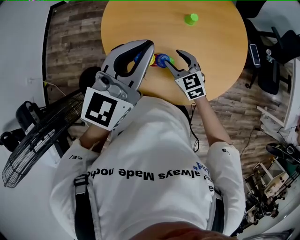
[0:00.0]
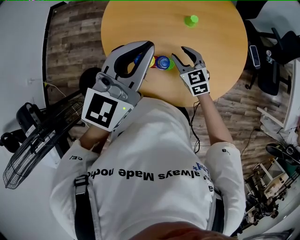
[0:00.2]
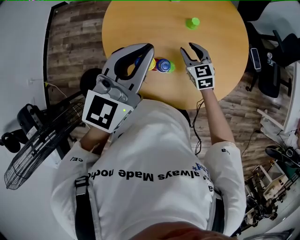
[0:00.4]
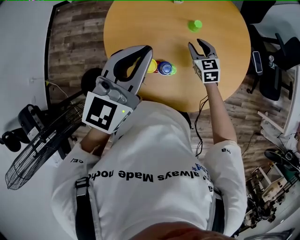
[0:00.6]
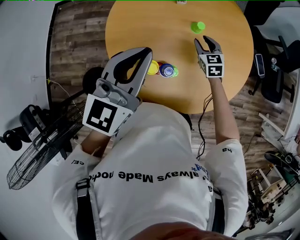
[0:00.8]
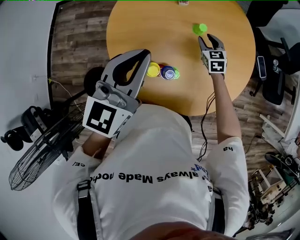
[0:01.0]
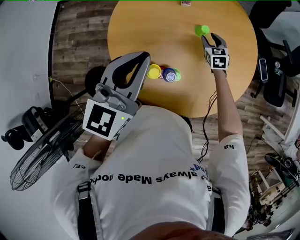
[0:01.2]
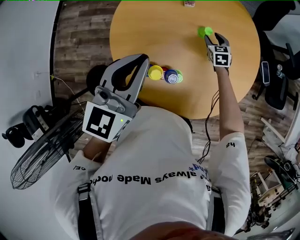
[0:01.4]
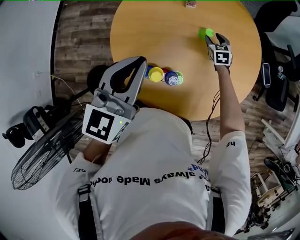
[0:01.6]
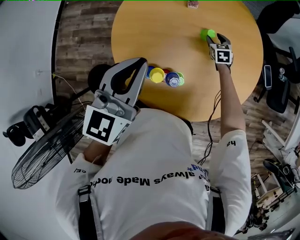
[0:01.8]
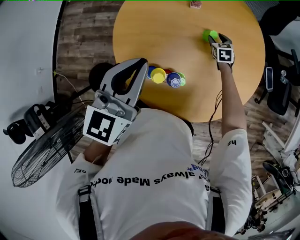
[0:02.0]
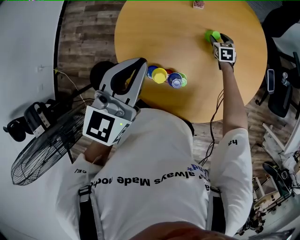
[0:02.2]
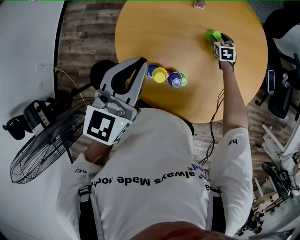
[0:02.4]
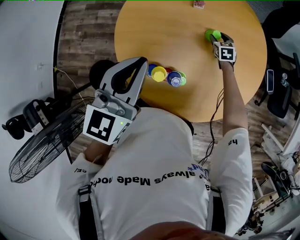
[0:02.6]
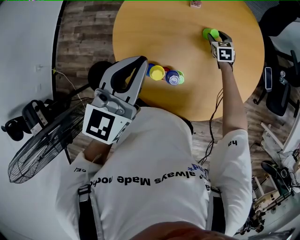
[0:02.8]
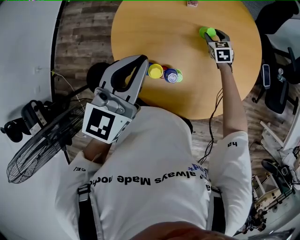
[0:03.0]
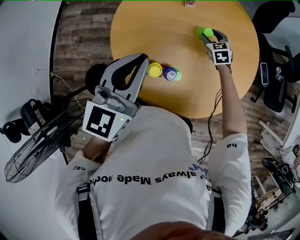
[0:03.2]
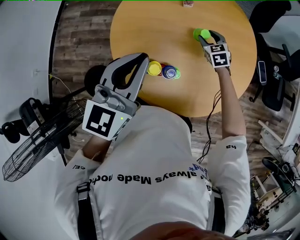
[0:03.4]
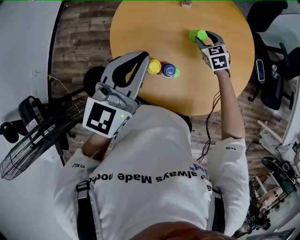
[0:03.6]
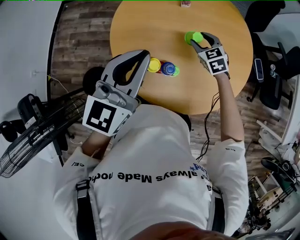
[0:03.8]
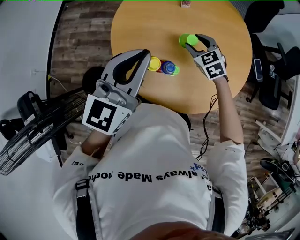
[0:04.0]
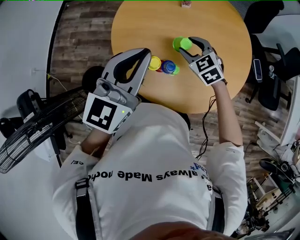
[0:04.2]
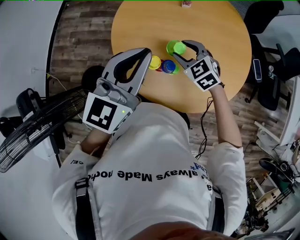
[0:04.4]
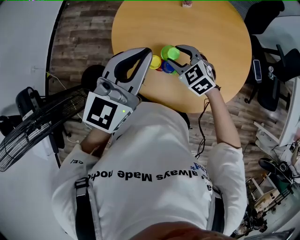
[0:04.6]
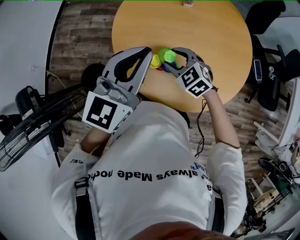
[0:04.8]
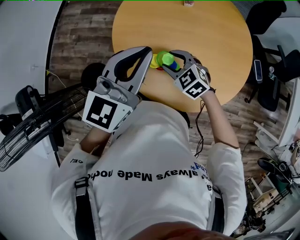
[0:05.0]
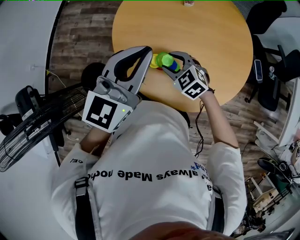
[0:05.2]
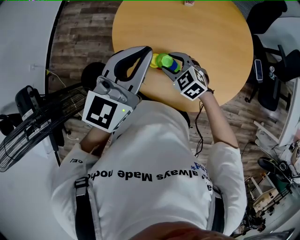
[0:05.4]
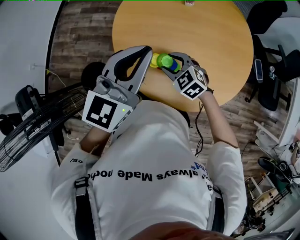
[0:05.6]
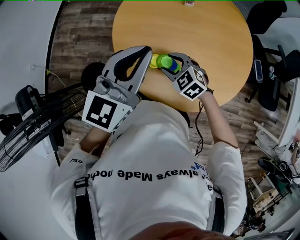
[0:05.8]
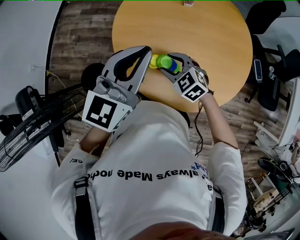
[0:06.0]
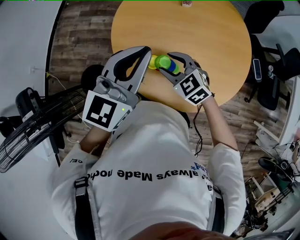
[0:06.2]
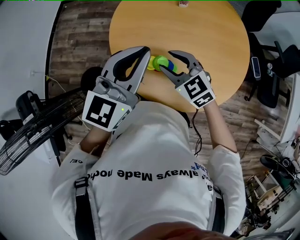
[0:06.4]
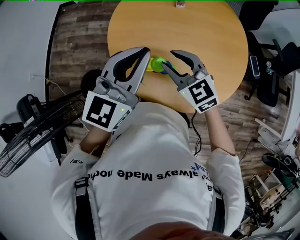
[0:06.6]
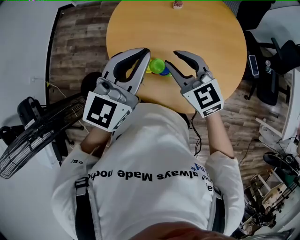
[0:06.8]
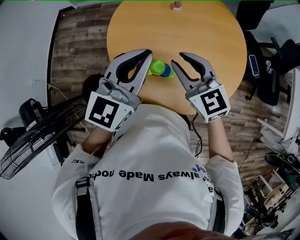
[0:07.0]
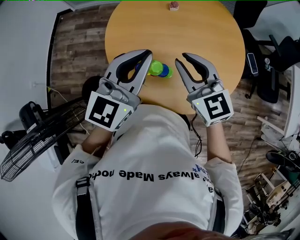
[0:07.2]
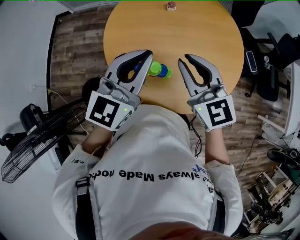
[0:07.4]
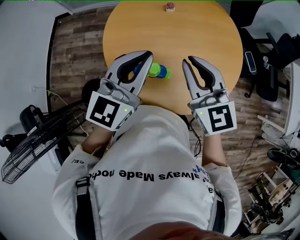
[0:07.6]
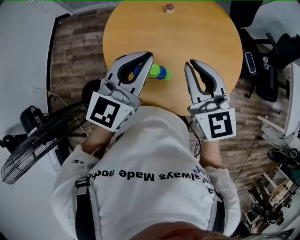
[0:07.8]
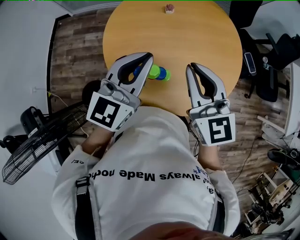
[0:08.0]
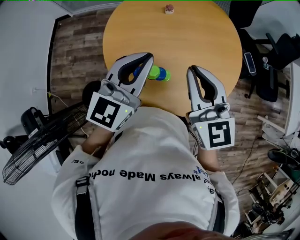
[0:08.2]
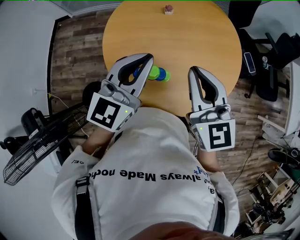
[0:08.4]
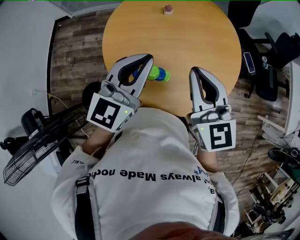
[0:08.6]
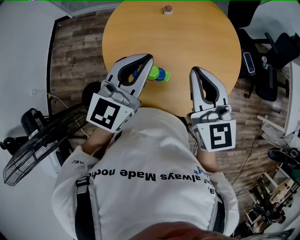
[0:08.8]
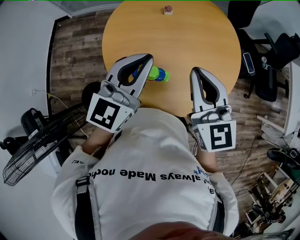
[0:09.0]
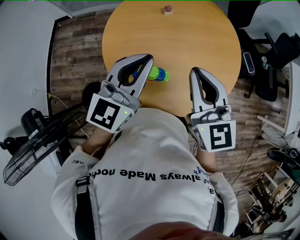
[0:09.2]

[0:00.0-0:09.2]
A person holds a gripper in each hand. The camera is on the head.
0:00.0 to 0:01.6: The left gripper goes approximately 5 cm forward. The right gripper is displaced forward, to the right and downward by some 30 cm, and rotates approximately 20 degrees.
0:01.6 to 0:03.0: There are only small adjustments of the grippers.
0:03.0 to 0:04.6: The right gripper travels backward, to the left and upward by approximately 30 cm, and rotates roughly 30 degrees, while the left gripper heads backward, covering roughly 5 cm.
0:04.6 to 0:06.2: The grippers move only a little.
0:06.2 to 0:07.6: The left gripper moves to the right, approximately 5 cm. Meanwhile the right gripper goes roughly 20 cm upward and to the right, turns by about 40 degrees, and closes its fingers.
0:07.6 to 0:09.2: The grippers make only small movements.

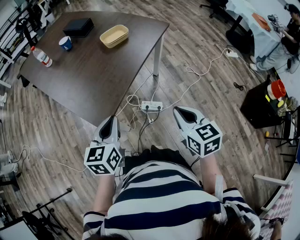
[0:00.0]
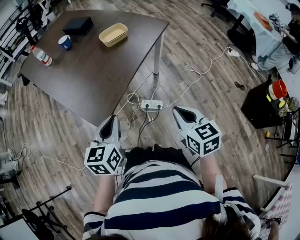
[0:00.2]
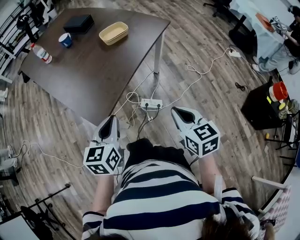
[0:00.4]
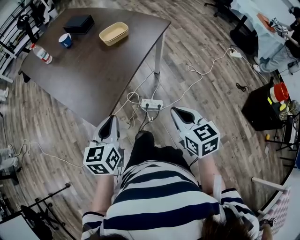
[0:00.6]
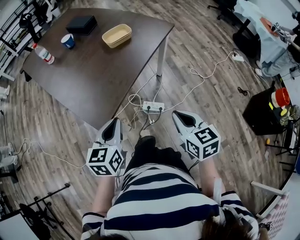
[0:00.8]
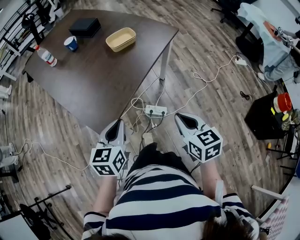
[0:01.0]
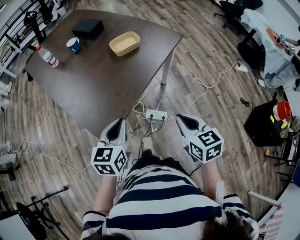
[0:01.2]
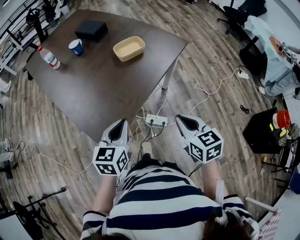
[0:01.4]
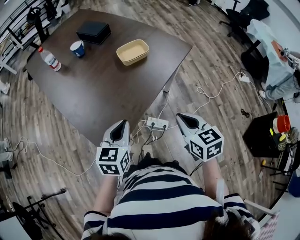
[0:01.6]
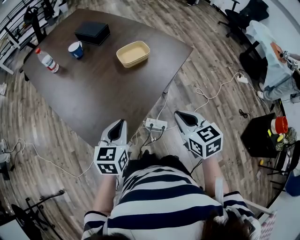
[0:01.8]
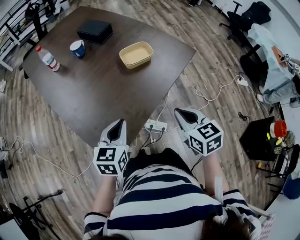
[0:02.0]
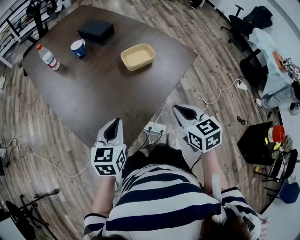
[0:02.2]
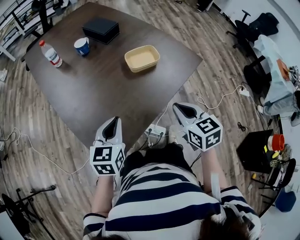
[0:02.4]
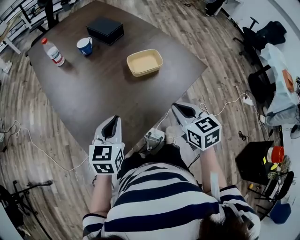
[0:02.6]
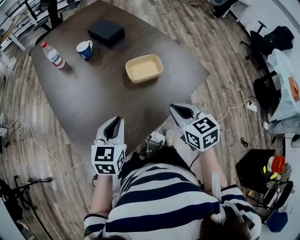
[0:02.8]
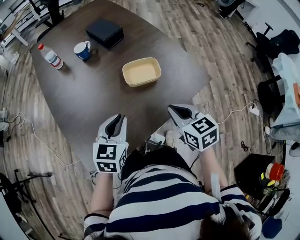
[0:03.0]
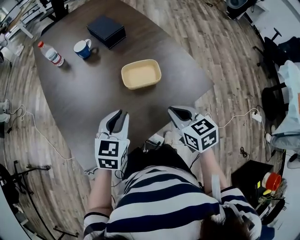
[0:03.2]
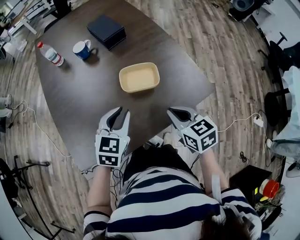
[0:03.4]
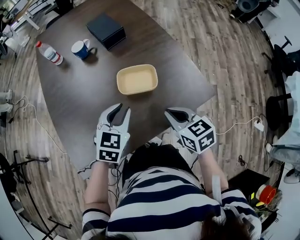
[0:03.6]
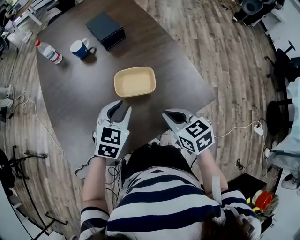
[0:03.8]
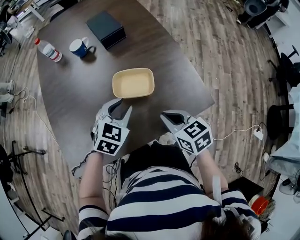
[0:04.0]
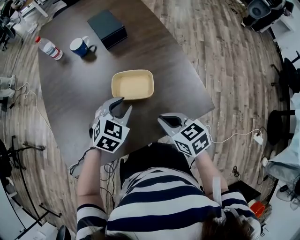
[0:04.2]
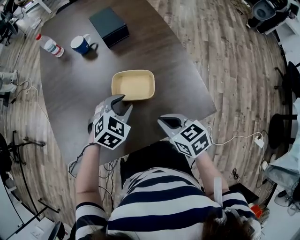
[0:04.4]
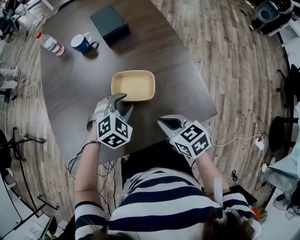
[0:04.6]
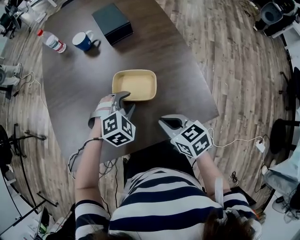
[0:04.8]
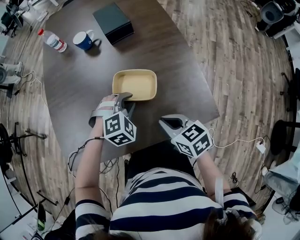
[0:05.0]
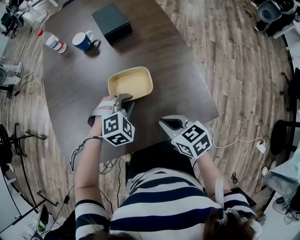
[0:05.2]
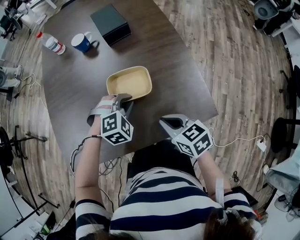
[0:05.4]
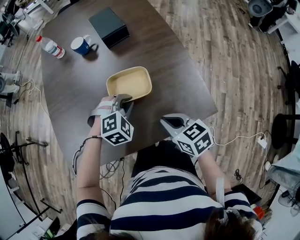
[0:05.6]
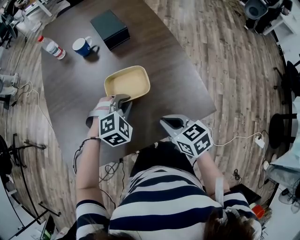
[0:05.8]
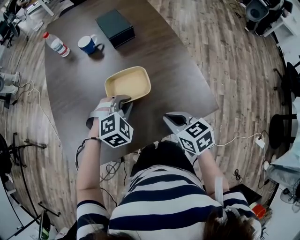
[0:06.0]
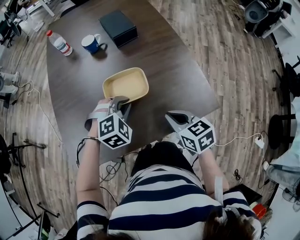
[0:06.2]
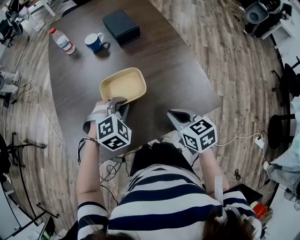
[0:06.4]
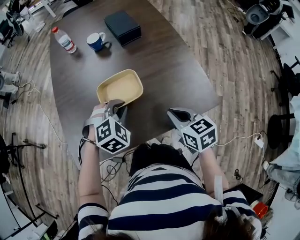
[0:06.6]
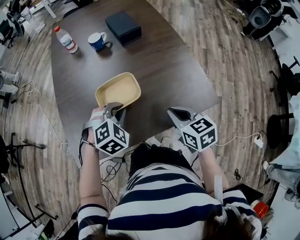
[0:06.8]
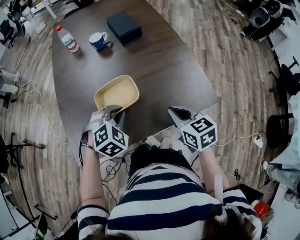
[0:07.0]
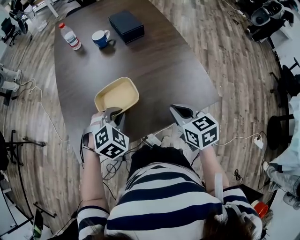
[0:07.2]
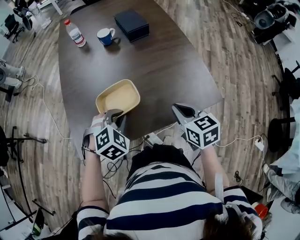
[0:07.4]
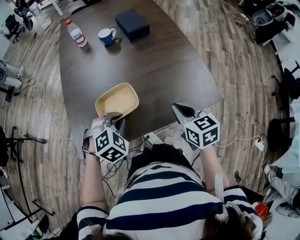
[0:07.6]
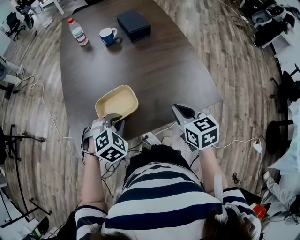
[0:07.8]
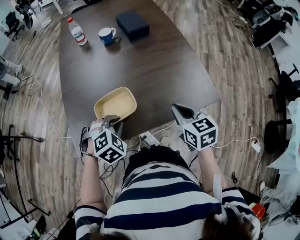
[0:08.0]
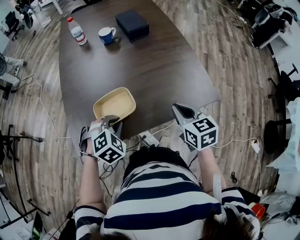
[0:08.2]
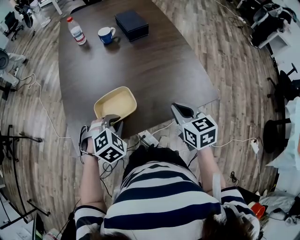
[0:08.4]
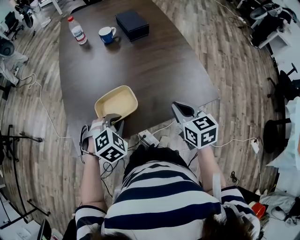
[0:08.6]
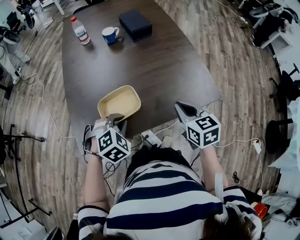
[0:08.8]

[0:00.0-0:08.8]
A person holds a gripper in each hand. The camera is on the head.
0:00.0 to 0:01.4: The two grippers go roughly 15 cm forward.
0:01.4 to 0:03.0: Both grippers move forward, roughly 30 cm. The right gripper swivels about 20 degrees.
0:03.0 to 0:04.4: The grippers both shift to the right, forward and downward by some 20 cm. The right gripper turns by some 30 degrees; the left gripper rotates some 30 degrees.
0:04.4 to 0:05.8: The left gripper turns by approximately 20 degrees.
0:05.8 to 0:07.4: The left gripper shifts roughly 20 cm to the left and backward; the right gripper shifts approximately 10 cm upward, to the left and backward.
0:07.4 to 0:08.8: The grippers make only small movements.

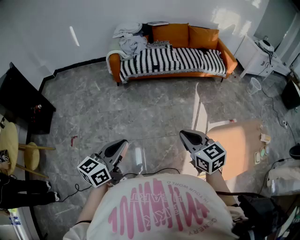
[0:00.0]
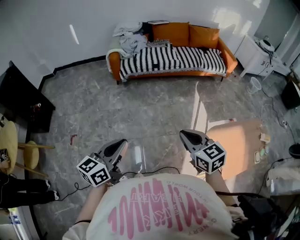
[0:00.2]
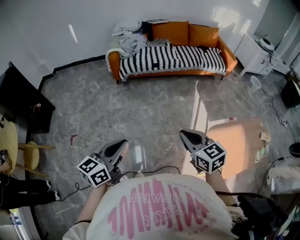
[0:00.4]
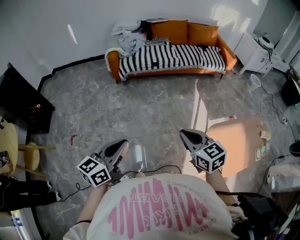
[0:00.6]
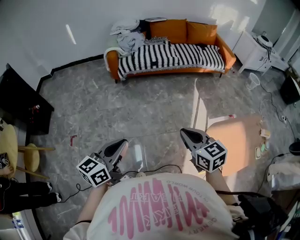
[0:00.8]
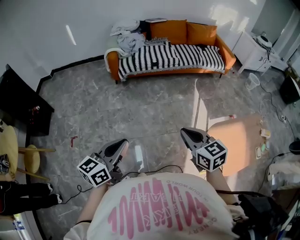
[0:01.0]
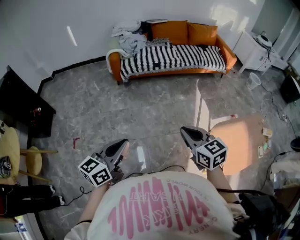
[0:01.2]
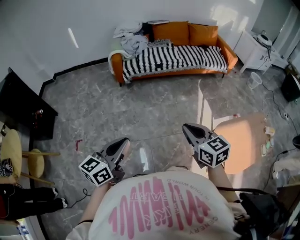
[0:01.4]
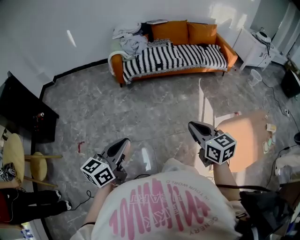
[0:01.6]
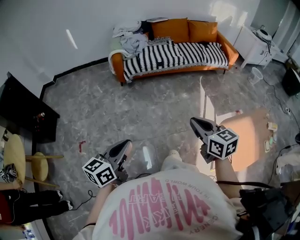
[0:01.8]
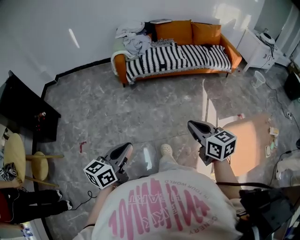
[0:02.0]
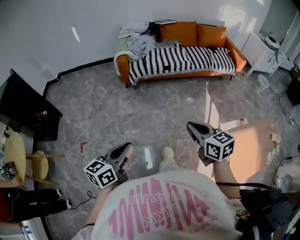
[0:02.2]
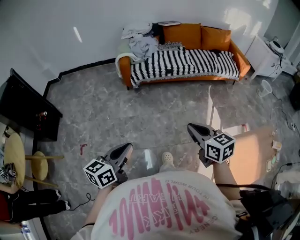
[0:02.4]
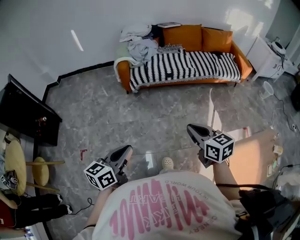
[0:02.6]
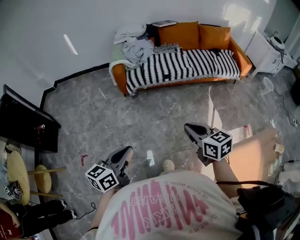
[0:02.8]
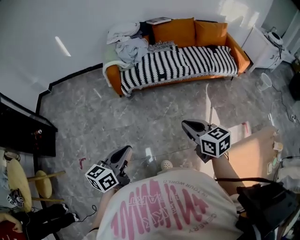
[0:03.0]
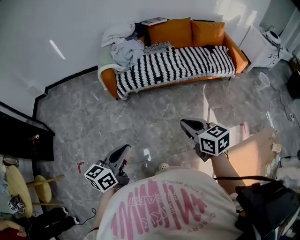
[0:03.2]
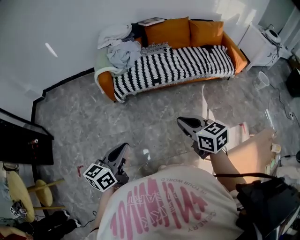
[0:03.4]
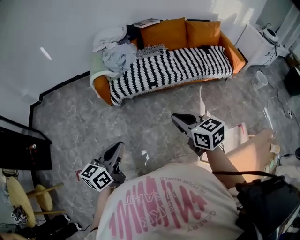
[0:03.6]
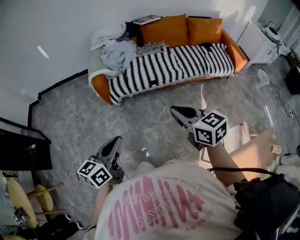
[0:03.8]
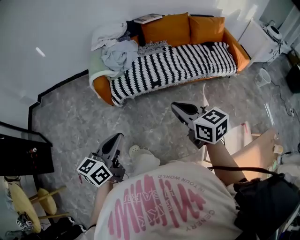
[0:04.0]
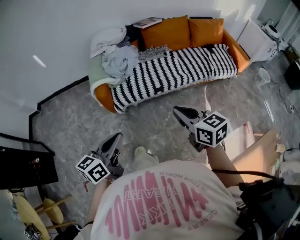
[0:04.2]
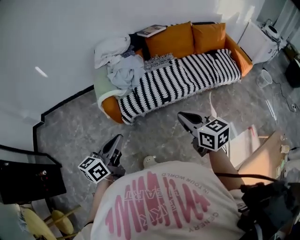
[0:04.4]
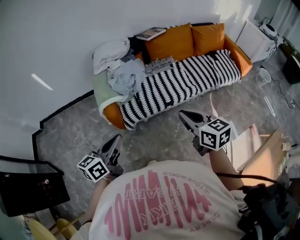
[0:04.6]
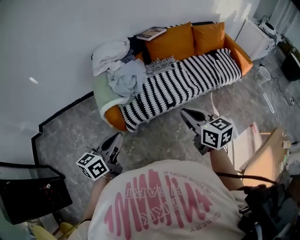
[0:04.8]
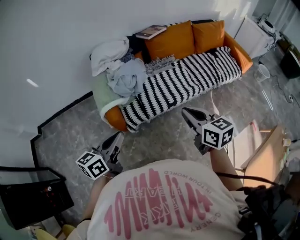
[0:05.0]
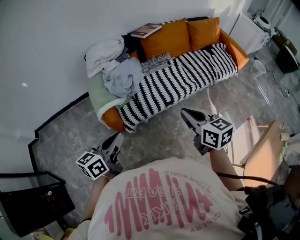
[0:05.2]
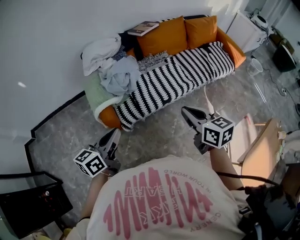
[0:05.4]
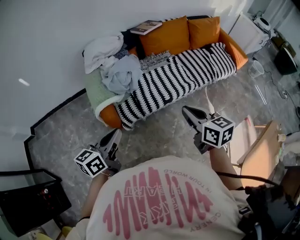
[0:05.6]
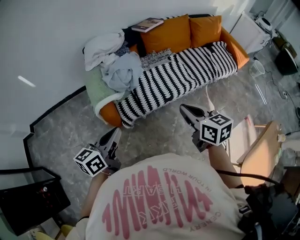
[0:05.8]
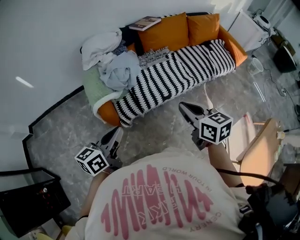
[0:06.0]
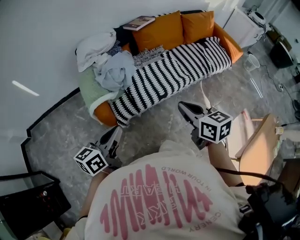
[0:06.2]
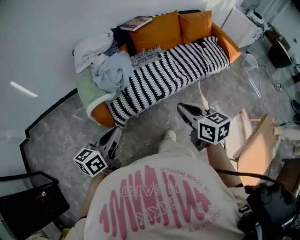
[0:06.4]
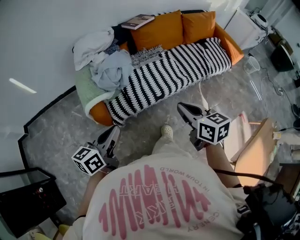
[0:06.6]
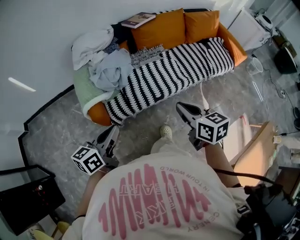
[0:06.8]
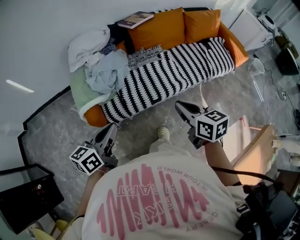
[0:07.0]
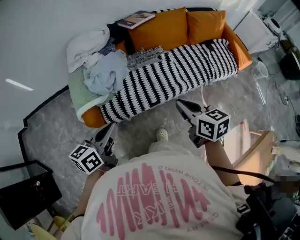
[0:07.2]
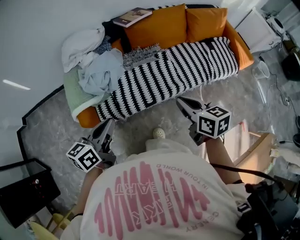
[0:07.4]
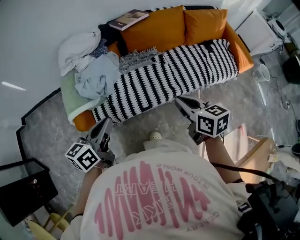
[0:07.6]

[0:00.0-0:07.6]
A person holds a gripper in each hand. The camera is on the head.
0:00.0 to 0:01.6: The left gripper travels to the left by about 5 cm.
0:01.6 to 0:03.0: Both grippers move forward, roughly 25 cm.
0:03.0 to 0:04.6: Both grippers move forward, approximately 35 cm.
0:04.6 to 0:06.0: The left gripper moves forward, approximately 5 cm; the right gripper moves approximately 5 cm.
0:06.0 to 0:07.6: Both grippers move forward and to the right, some 20 cm.
